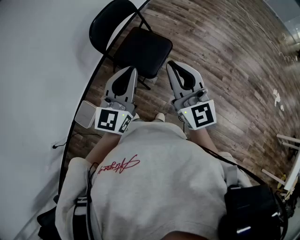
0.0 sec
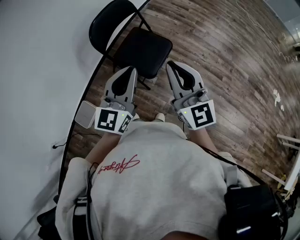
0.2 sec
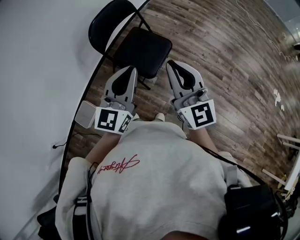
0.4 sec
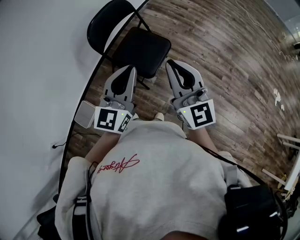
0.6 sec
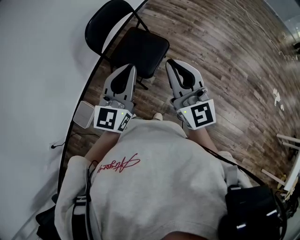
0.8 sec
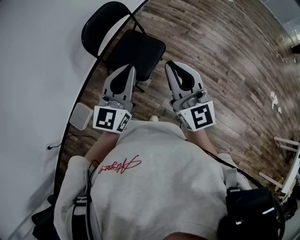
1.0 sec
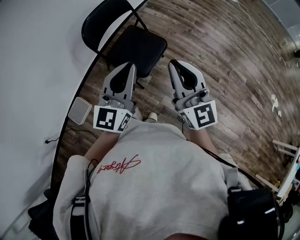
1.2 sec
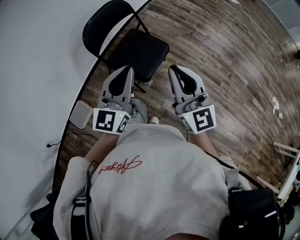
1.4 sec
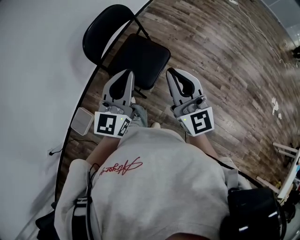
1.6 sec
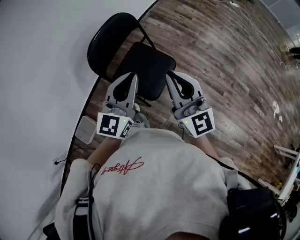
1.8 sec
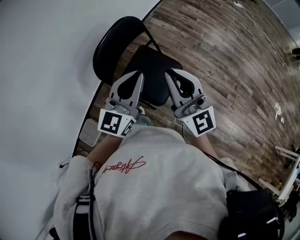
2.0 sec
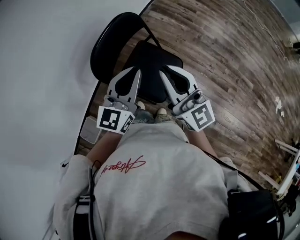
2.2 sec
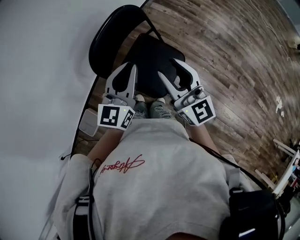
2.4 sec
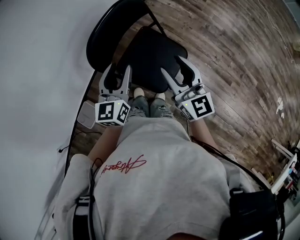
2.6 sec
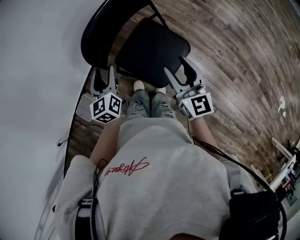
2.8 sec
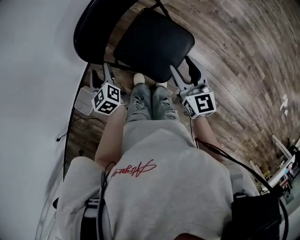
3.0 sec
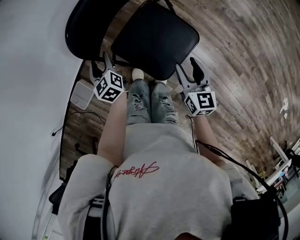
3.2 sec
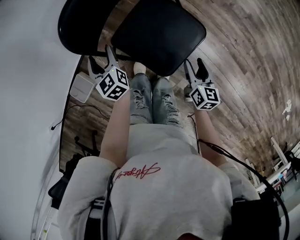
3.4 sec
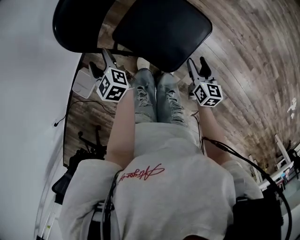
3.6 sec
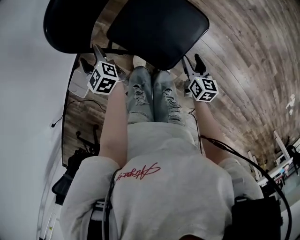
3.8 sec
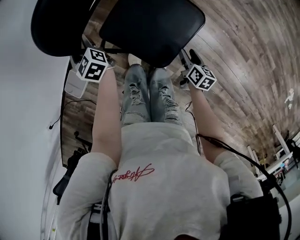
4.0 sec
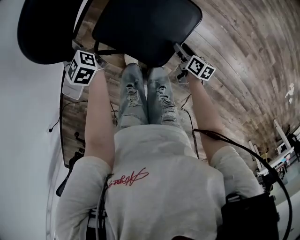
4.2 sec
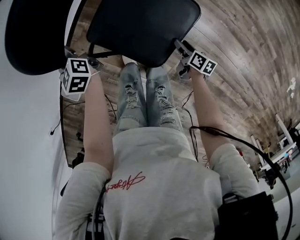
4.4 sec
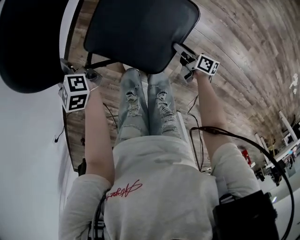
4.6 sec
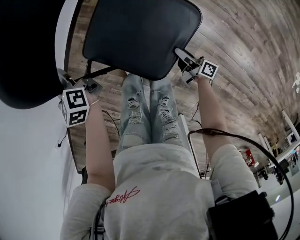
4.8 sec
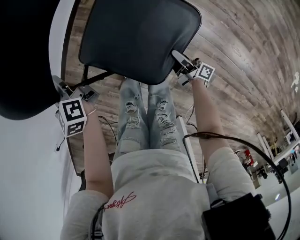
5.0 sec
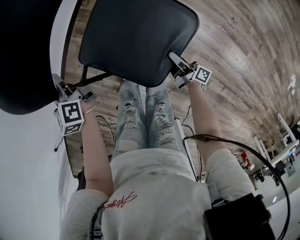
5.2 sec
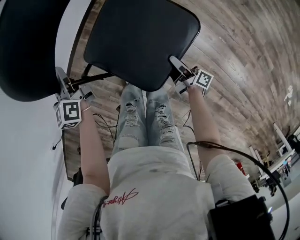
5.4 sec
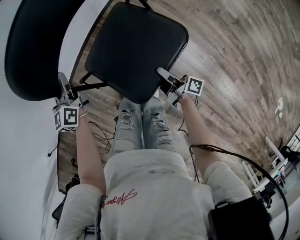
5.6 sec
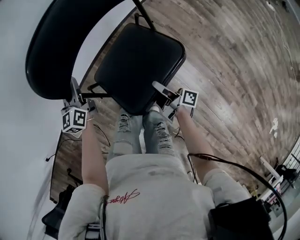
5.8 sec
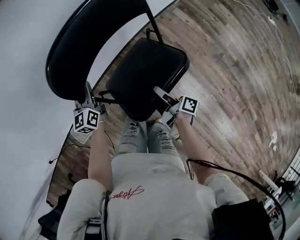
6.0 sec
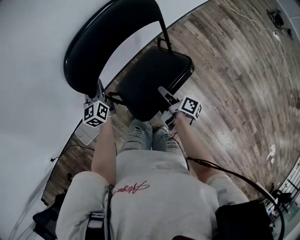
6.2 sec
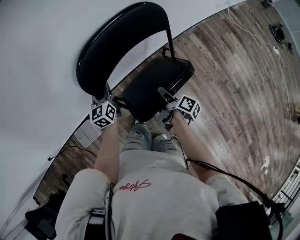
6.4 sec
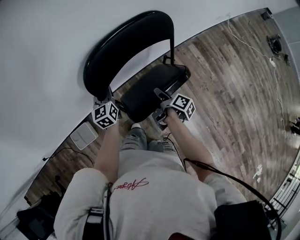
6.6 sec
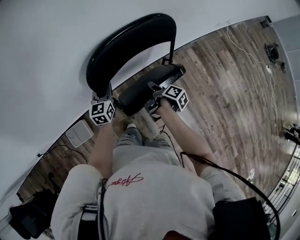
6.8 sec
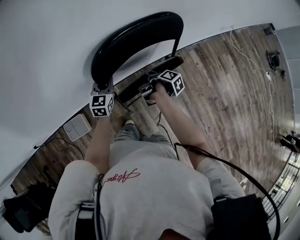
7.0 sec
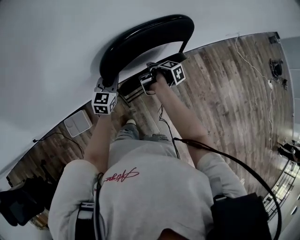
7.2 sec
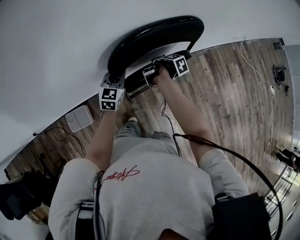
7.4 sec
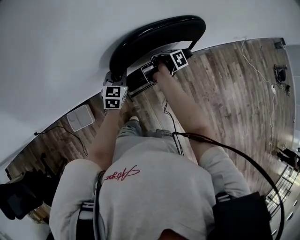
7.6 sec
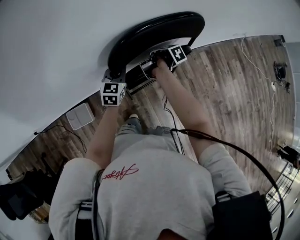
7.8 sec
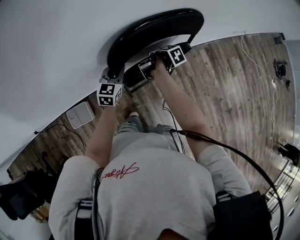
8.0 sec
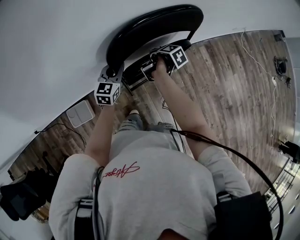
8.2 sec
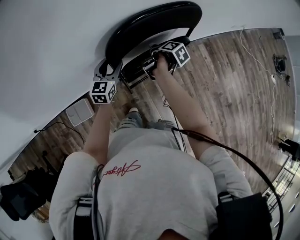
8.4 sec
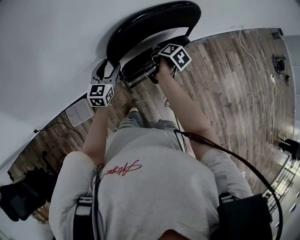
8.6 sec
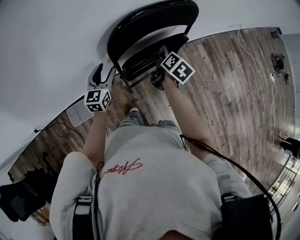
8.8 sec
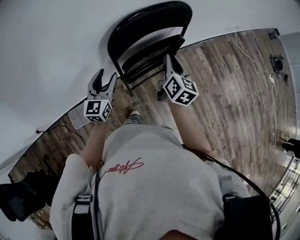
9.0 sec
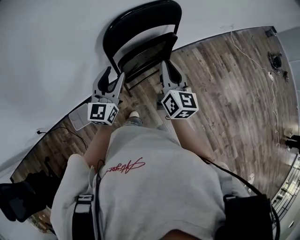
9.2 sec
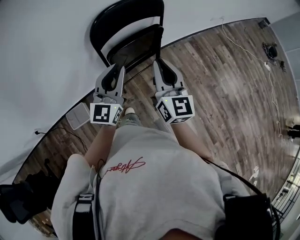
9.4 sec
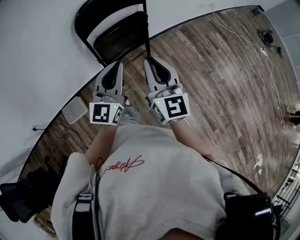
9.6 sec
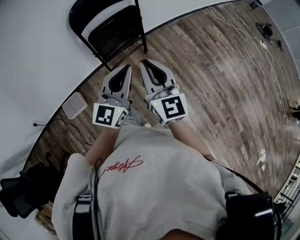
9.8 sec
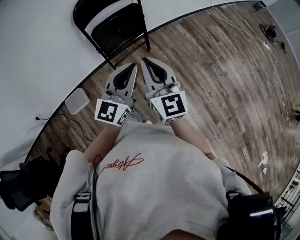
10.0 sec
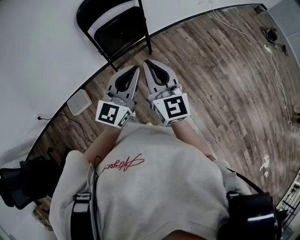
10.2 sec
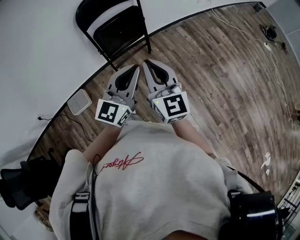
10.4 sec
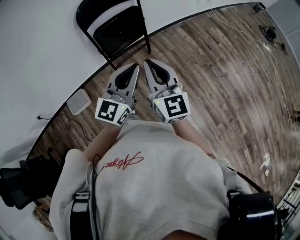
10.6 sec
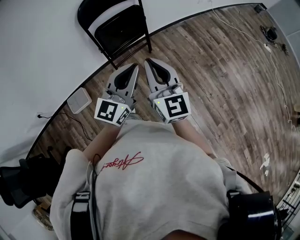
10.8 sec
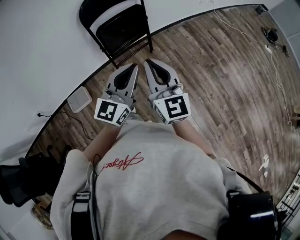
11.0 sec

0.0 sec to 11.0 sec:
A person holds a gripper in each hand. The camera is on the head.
0.0 sec to 1.6 sec: Both grippers move forward, approximately 5 cm.
1.6 sec to 3.2 sec: The two grippers go roughly 35 cm downward. The left gripper tilts its fingers some 40 degrees downward, and opens. Meanwhile the right gripper angles its fingers downward, by some 30 degrees, and opens.
3.2 sec to 4.8 sec: The right gripper moves downward, approximately 30 cm, and rolls clockwise, seen from behind, by roughly 60 degrees. Meanwhile the left gripper heads forward, covering roughly 10 cm, and closes up.
4.8 sec to 6.2 sec: The left gripper travels upward and forward by approximately 15 cm, and rotates about 20 degrees. Meanwhile the right gripper goes some 35 cm forward, upward and to the left, and closes.
6.2 sec to 7.8 sec: The left gripper moves approximately 5 cm; the right gripper heads forward and to the left, covering roughly 25 cm, and angles its fingers downward, by approximately 40 degrees.
7.8 sec to 9.4 sec: The left gripper goes roughly 35 cm upward, backward and to the right, angles its fingers upward, by approximately 30 degrees, and opens and closes again, while the right gripper heads upward and backward, covering about 40 cm, tips its fingers upward by some 60 degrees, and closes its fingers.
9.4 sec to 11.0 sec: Both grippers travel together backward and to the right, approximately 25 cm.

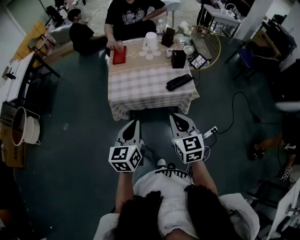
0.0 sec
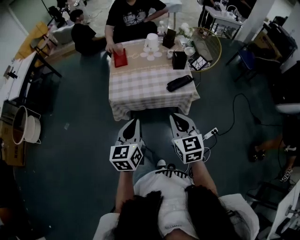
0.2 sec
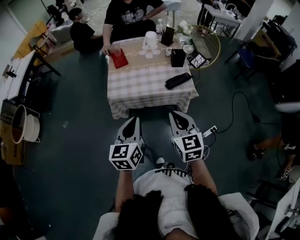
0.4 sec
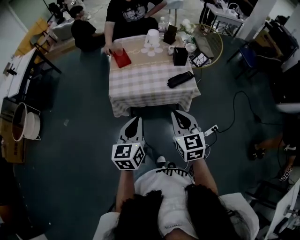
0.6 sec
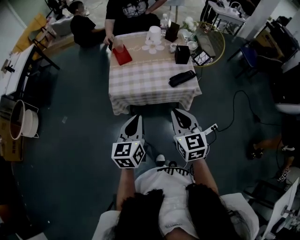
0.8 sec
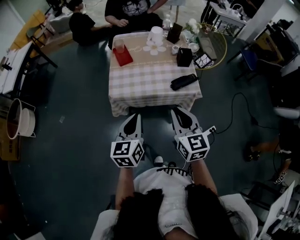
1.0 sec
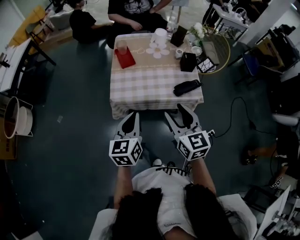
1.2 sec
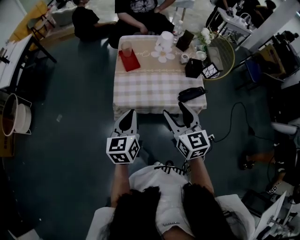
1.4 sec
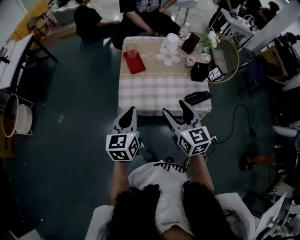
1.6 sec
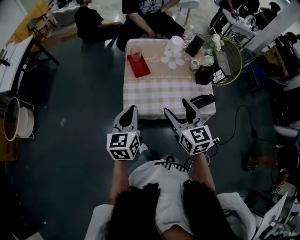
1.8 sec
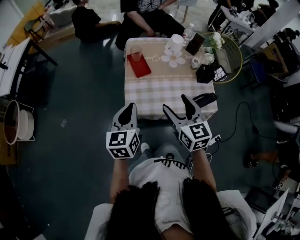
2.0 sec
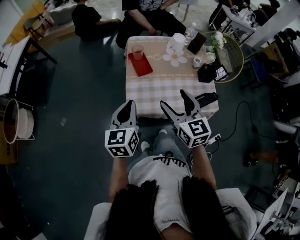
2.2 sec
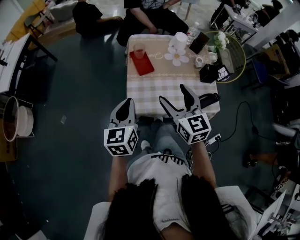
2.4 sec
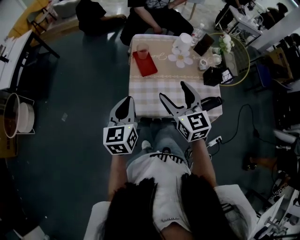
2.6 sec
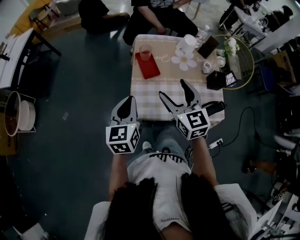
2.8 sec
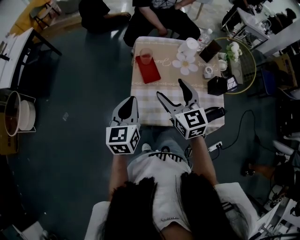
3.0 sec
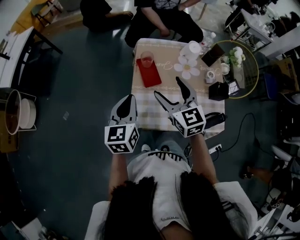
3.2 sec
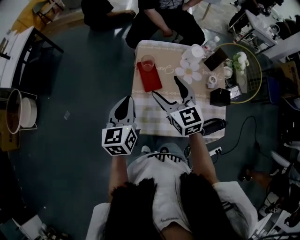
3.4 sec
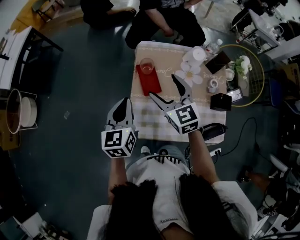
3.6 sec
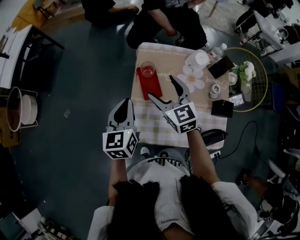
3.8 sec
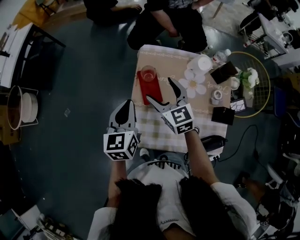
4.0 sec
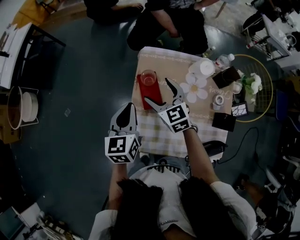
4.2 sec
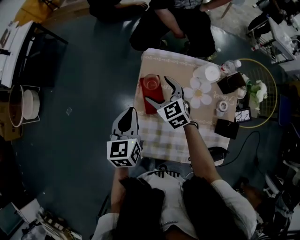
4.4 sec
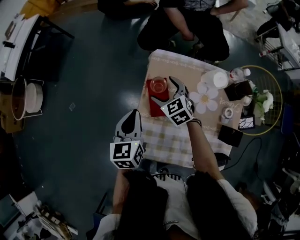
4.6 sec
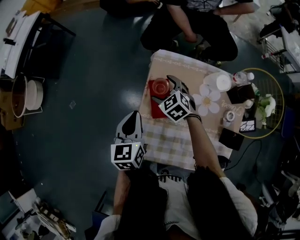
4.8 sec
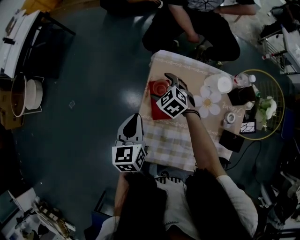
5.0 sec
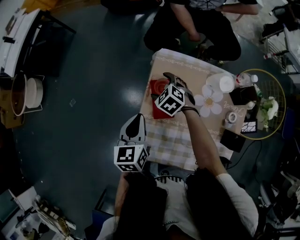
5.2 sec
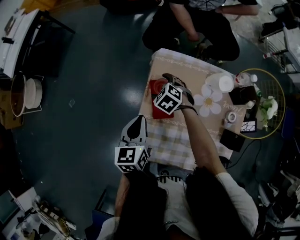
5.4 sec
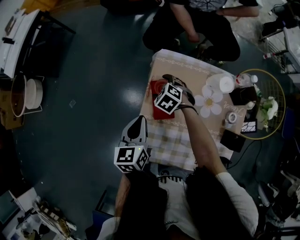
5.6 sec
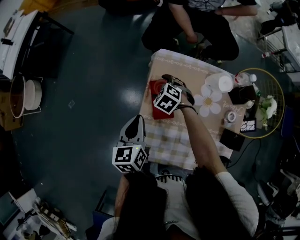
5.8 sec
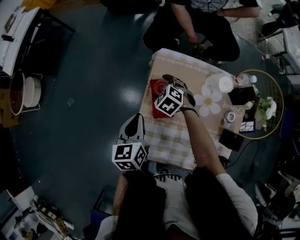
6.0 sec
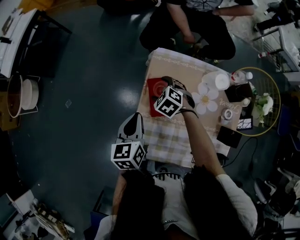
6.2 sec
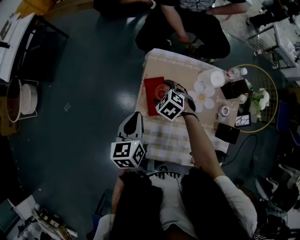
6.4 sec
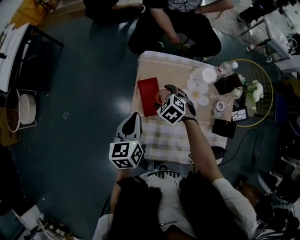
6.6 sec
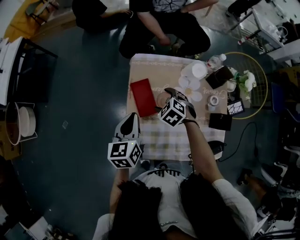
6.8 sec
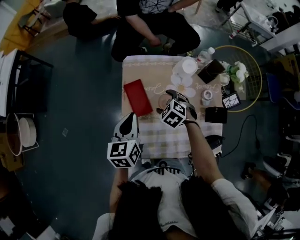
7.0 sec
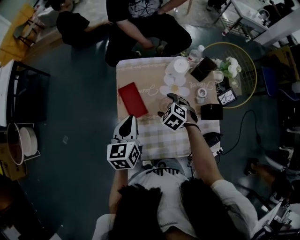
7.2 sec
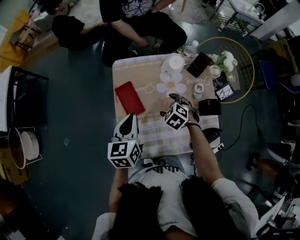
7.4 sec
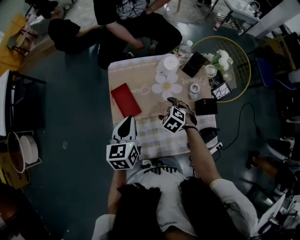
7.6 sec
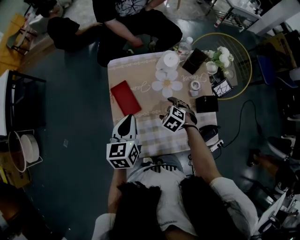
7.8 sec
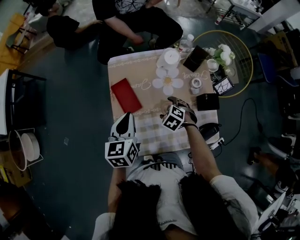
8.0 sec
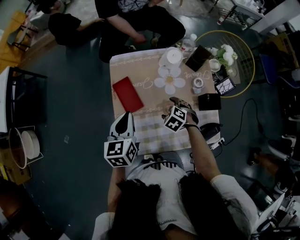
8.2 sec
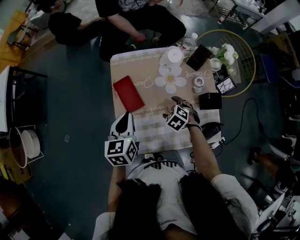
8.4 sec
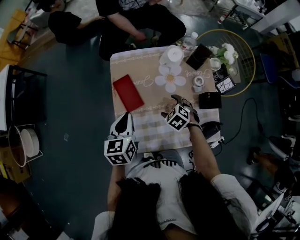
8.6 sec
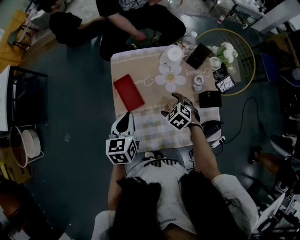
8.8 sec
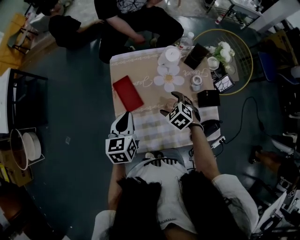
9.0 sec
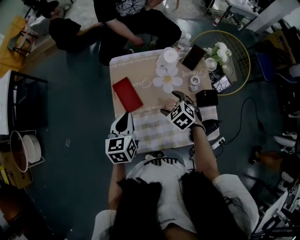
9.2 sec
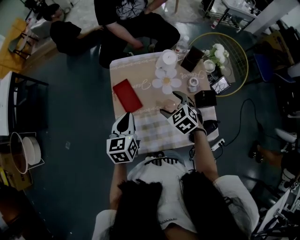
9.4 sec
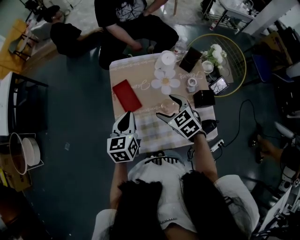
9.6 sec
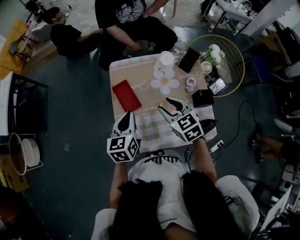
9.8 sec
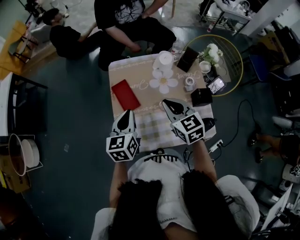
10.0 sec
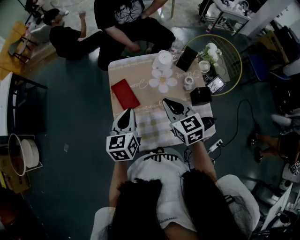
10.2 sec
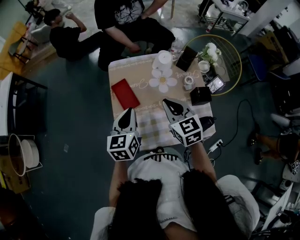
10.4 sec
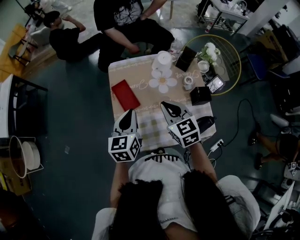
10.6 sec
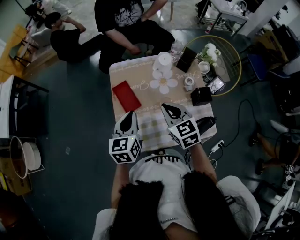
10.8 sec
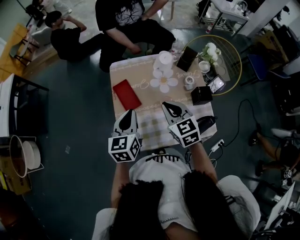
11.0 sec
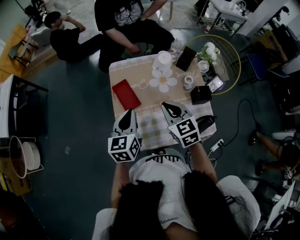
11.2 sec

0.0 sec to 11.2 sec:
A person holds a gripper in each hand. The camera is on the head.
0.0 sec to 1.6 sec: The grippers both shift forward and to the left by about 20 cm. The right gripper opens its fingers.
1.6 sec to 3.2 sec: Both grippers move forward, about 20 cm.
3.2 sec to 4.8 sec: The right gripper travels forward and downward by approximately 30 cm, and tilts its fingers about 30 degrees downward. The left gripper heads forward and downward, covering about 15 cm.
4.8 sec to 6.4 sec: The grippers stay close to where they were, moving slightly.
6.4 sec to 8.0 sec: The left gripper shifts approximately 10 cm to the right, and changes its angle by some 20 degrees; the right gripper travels to the right and backward by approximately 20 cm.
8.0 sec to 9.6 sec: The right gripper moves upward, about 15 cm, and swivels roughly 30 degrees.
9.6 sec to 11.2 sec: The right gripper goes some 5 cm upward, swivels about 20 degrees, and closes.

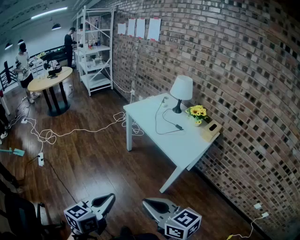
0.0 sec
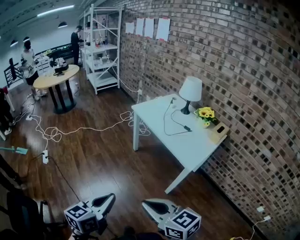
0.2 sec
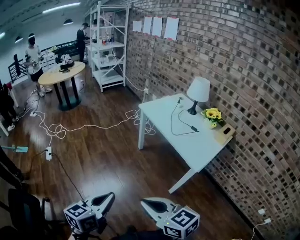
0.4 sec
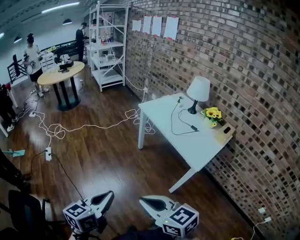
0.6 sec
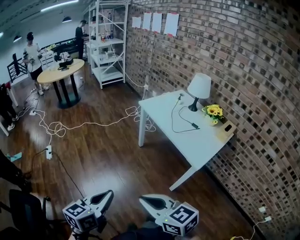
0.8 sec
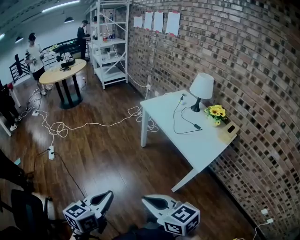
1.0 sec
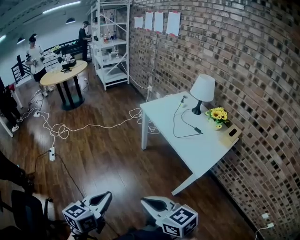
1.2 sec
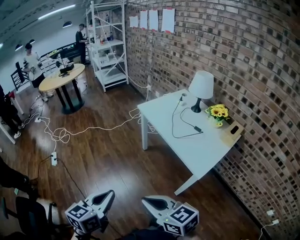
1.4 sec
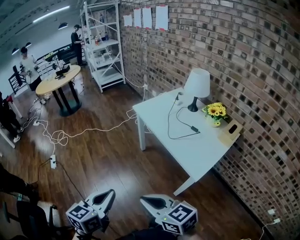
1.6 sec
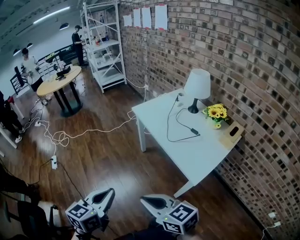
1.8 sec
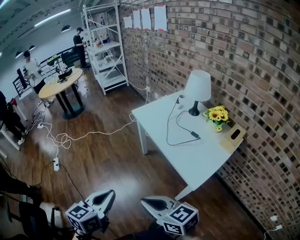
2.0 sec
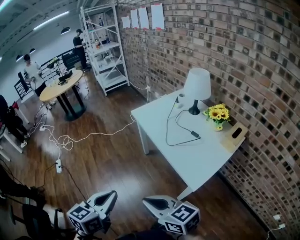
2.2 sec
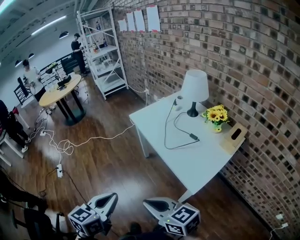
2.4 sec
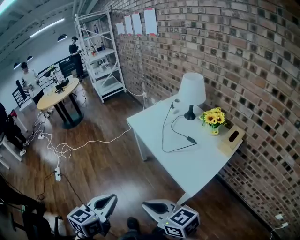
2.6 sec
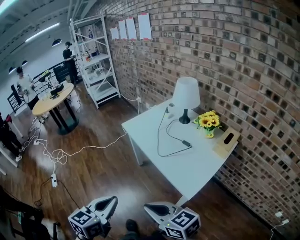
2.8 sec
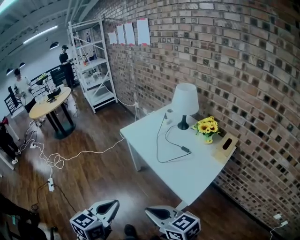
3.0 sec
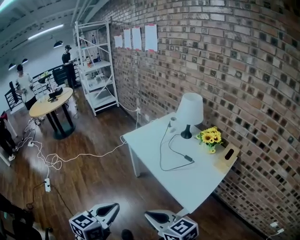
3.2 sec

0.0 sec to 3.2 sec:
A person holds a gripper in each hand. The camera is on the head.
0.0 sec to 1.6 sec: Both grippers move forward, some 10 cm.
1.6 sec to 3.2 sec: Both grippers travel together forward and to the right, approximately 15 cm.
